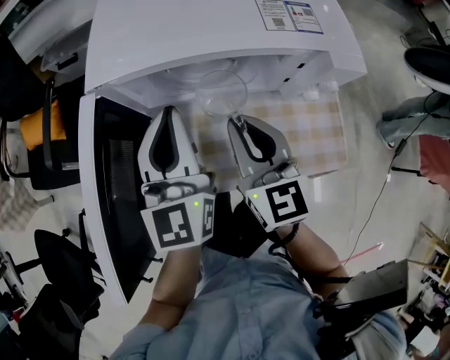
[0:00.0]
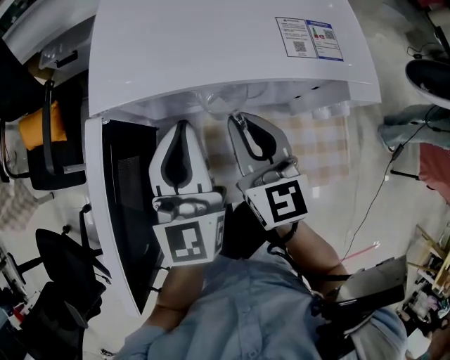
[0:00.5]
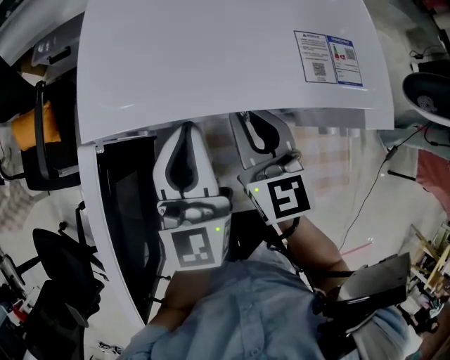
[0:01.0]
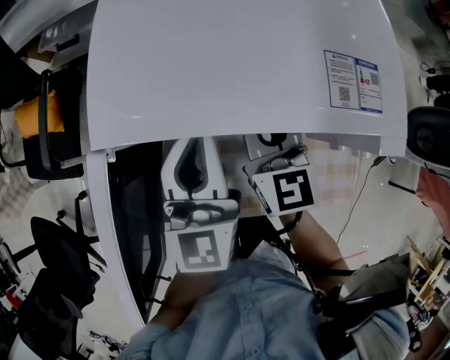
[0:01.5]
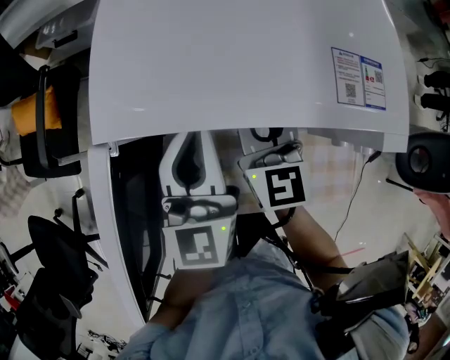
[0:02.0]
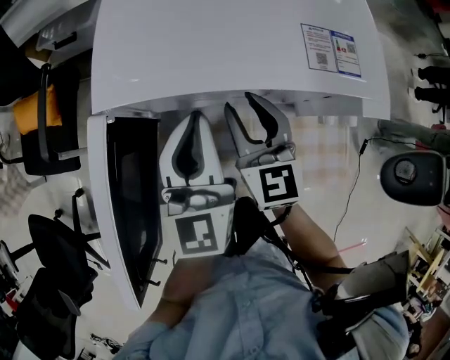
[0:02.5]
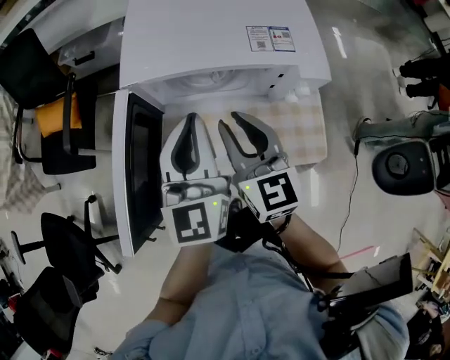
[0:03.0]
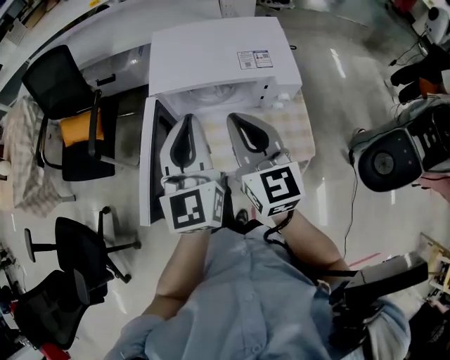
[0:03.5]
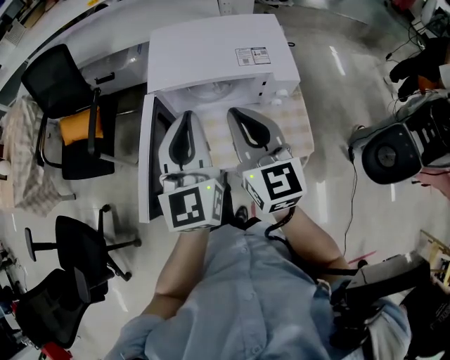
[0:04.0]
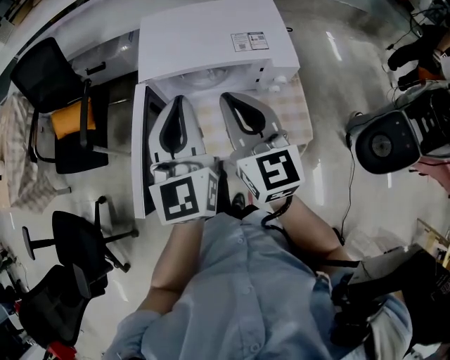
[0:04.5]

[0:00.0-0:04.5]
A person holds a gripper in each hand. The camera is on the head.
0:00.0 to 0:02.0: The left gripper ends up about 5 cm from where it was. Meanwhile the right gripper is displaced forward by roughly 15 cm.
0:02.0 to 0:04.5: Both grippers move upward and backward, approximately 30 cm.

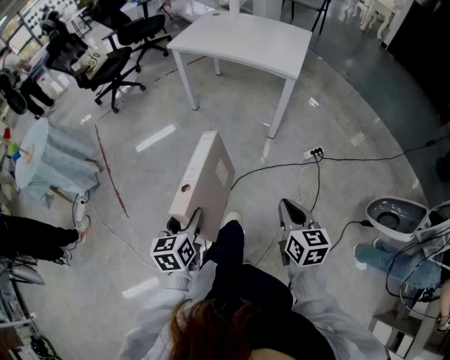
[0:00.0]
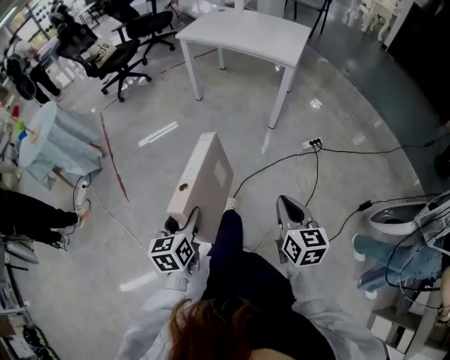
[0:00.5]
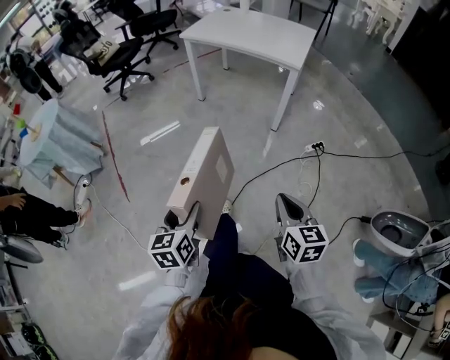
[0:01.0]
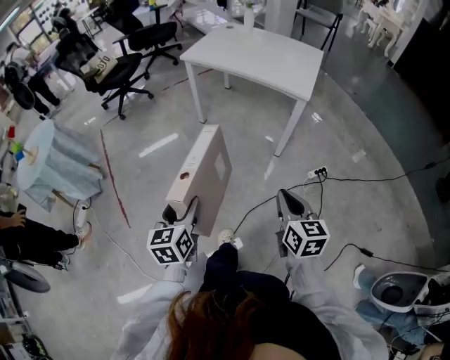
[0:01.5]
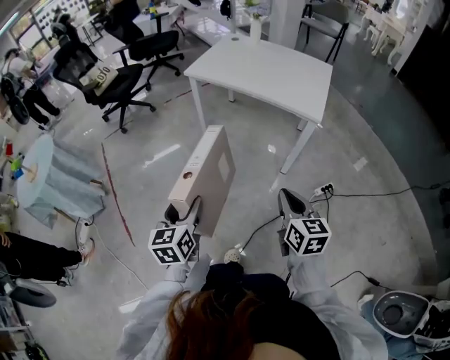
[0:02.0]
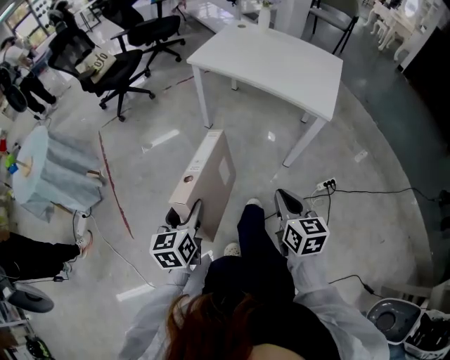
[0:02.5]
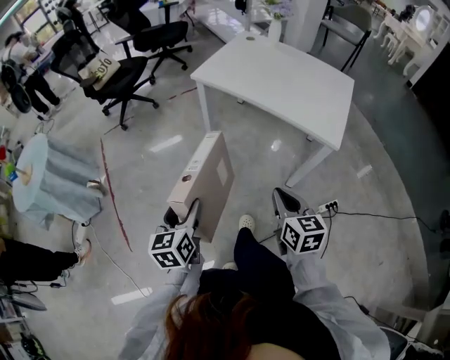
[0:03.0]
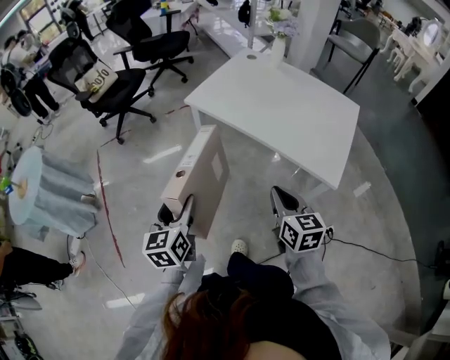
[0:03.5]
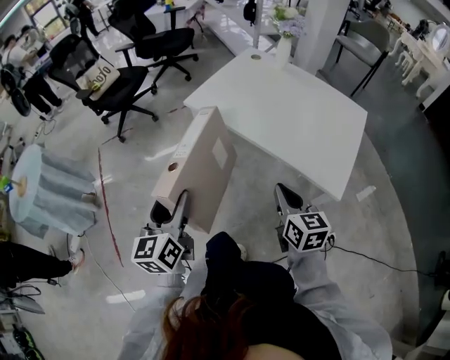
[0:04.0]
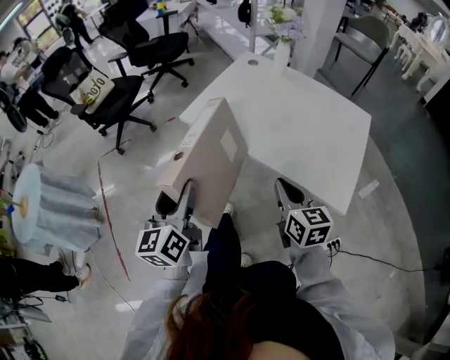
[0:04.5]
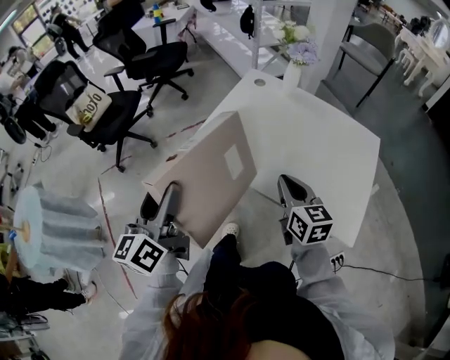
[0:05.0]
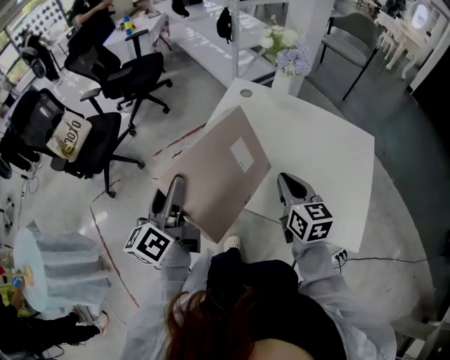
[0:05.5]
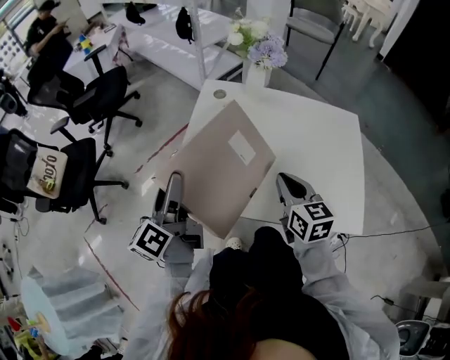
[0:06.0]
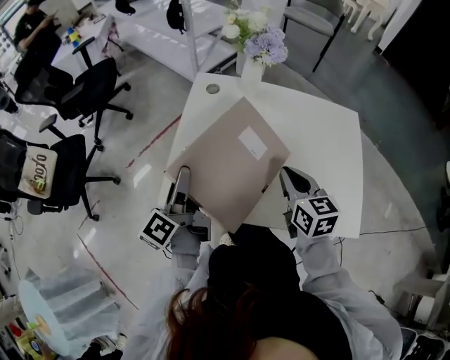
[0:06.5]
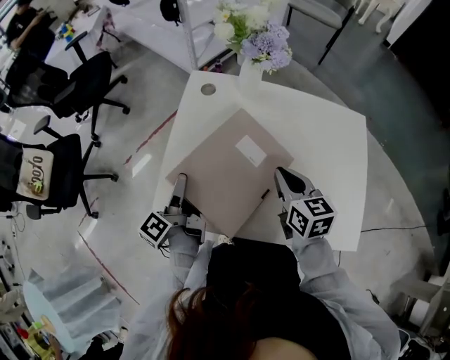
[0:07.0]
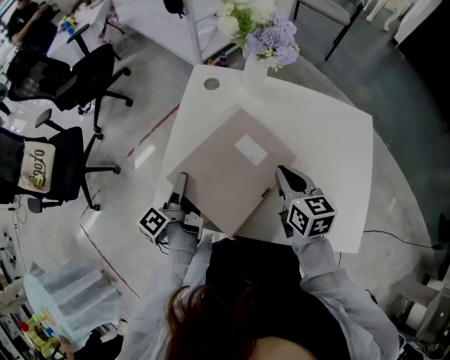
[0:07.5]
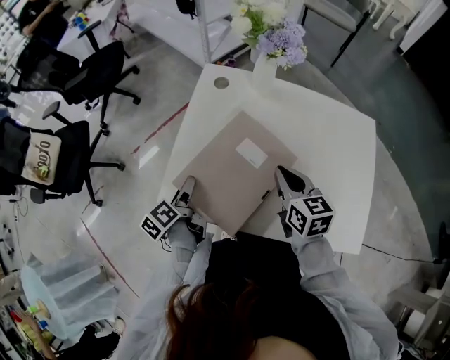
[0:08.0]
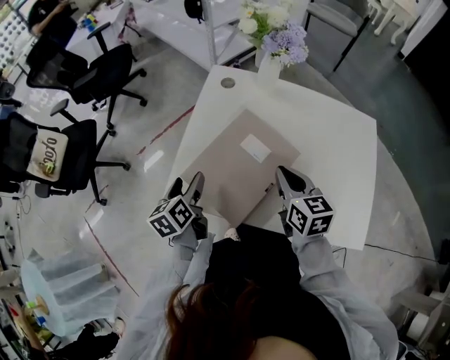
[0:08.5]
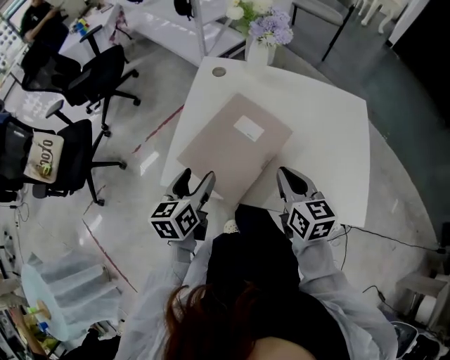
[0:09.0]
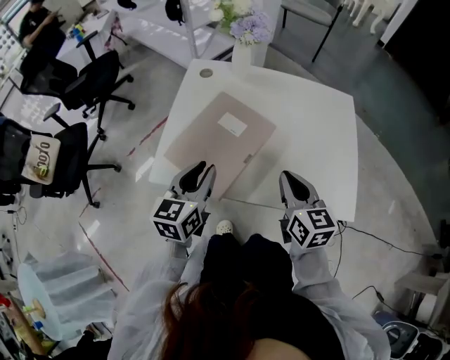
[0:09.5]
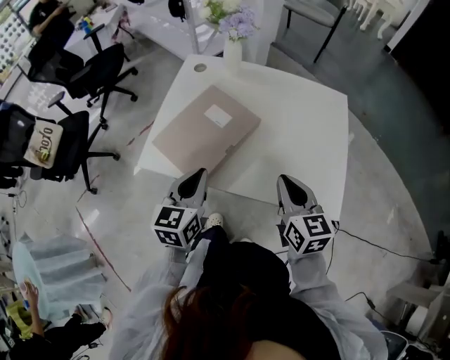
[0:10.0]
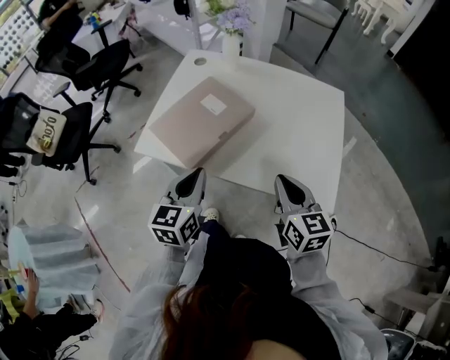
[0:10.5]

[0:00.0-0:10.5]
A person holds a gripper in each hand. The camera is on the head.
0:00.0 to 0:02.0: The grippers both shift forward by roughly 25 cm.
0:02.0 to 0:04.0: The grippers both shift forward by approximately 35 cm.
0:04.0 to 0:06.5: The grippers both shift forward by roughly 40 cm. The left gripper rolls counterclockwise, seen from behind, by approximately 40 degrees. The right gripper turns by about 20 degrees.
0:06.5 to 0:08.5: The left gripper moves downward, some 10 cm, and tips its fingers downward by roughly 30 degrees.
0:08.5 to 0:10.5: The left gripper goes some 30 cm to the right, backward and upward, changes its angle by some 30 degrees, and closes. Meanwhile the right gripper goes about 25 cm backward and to the right.

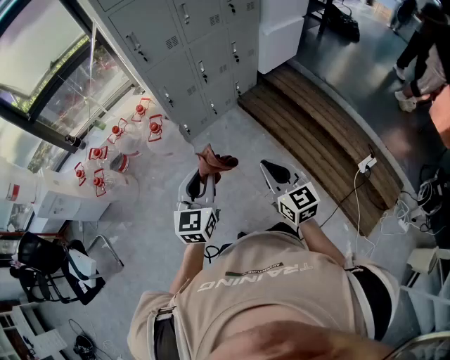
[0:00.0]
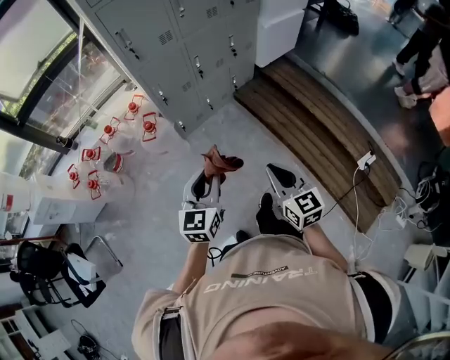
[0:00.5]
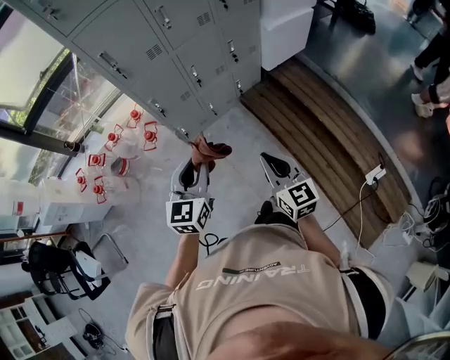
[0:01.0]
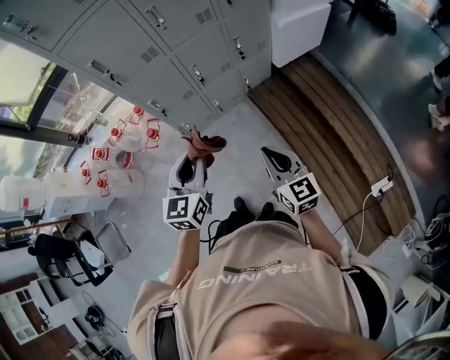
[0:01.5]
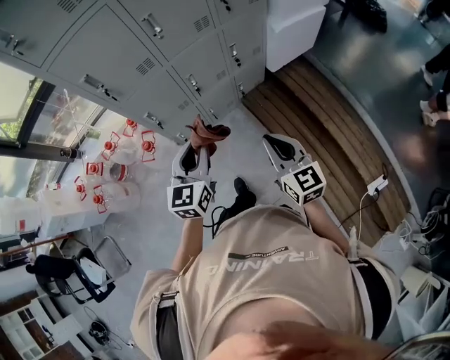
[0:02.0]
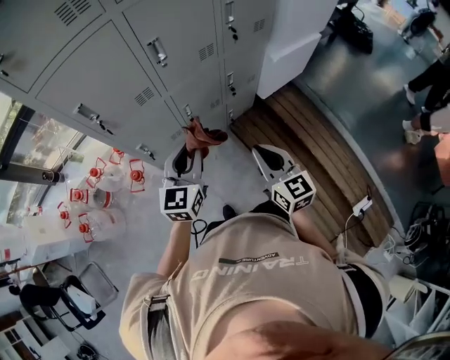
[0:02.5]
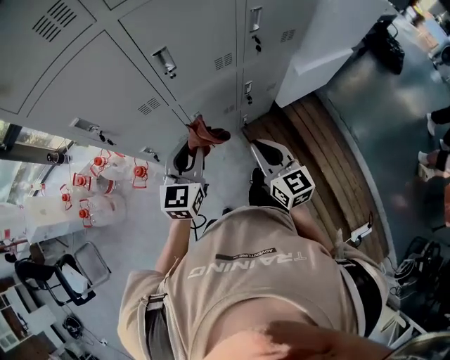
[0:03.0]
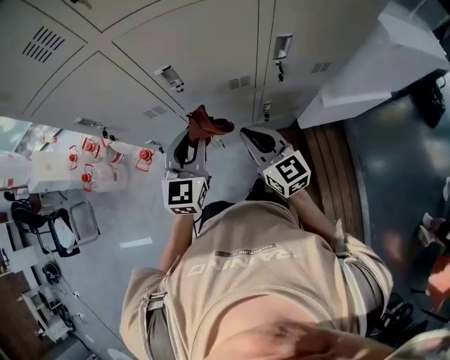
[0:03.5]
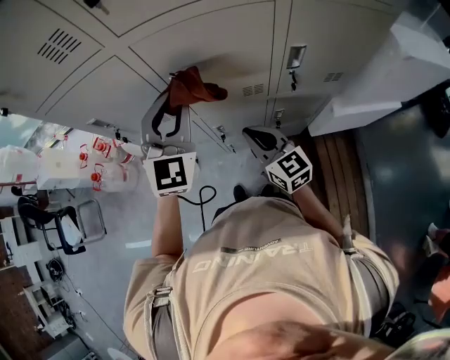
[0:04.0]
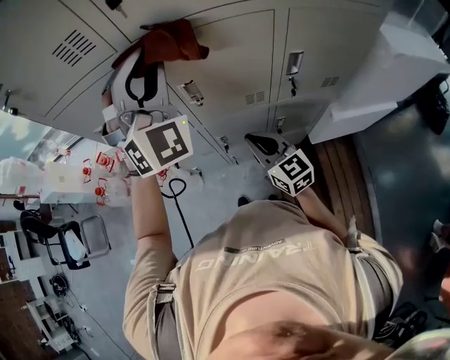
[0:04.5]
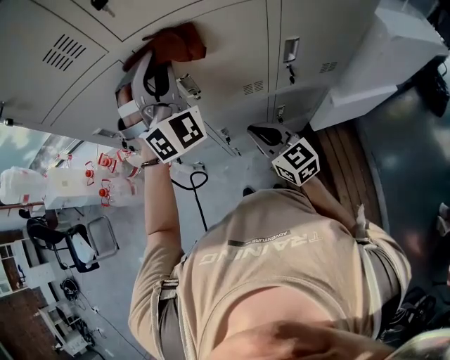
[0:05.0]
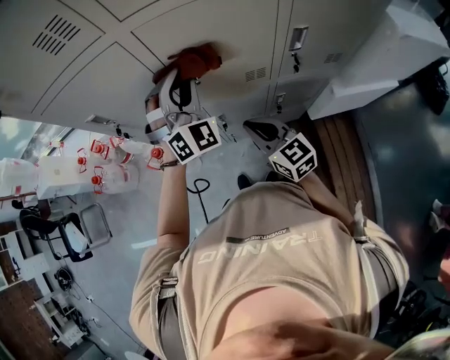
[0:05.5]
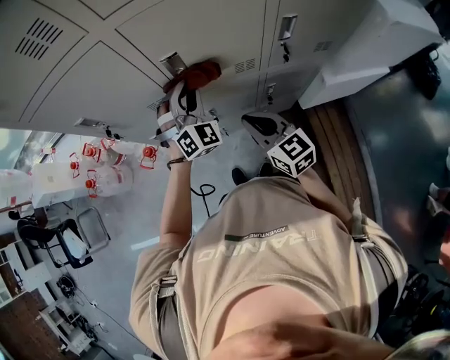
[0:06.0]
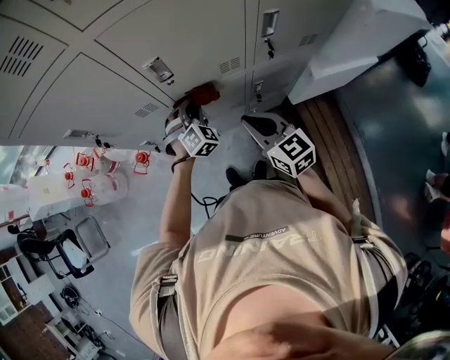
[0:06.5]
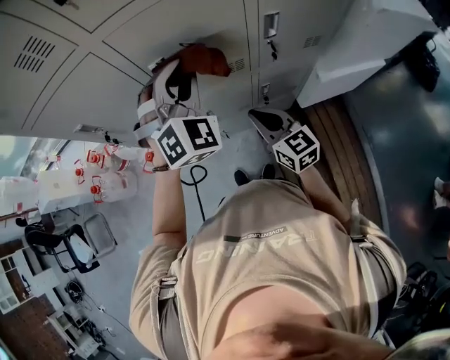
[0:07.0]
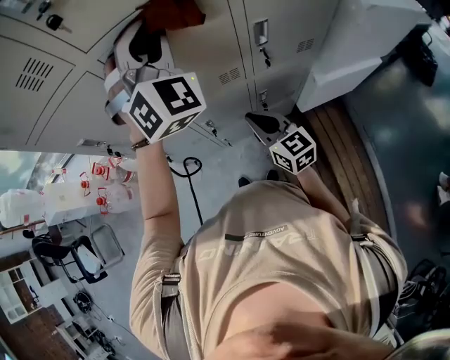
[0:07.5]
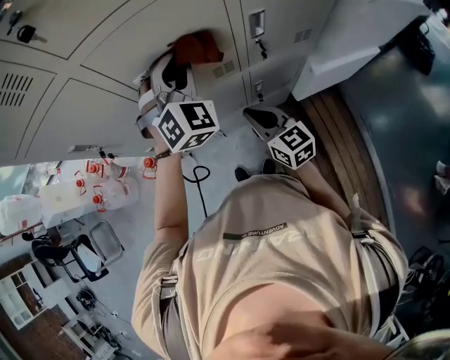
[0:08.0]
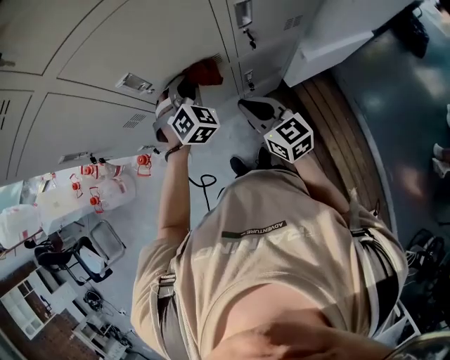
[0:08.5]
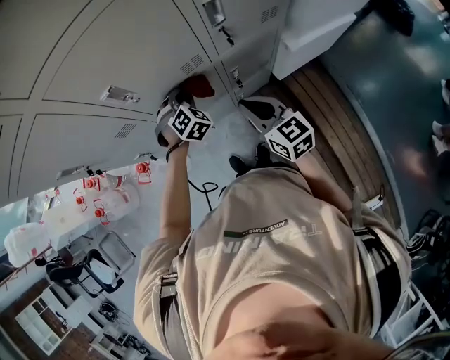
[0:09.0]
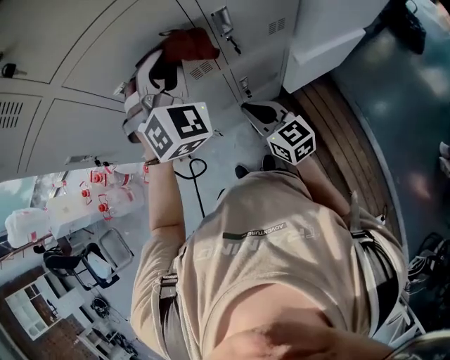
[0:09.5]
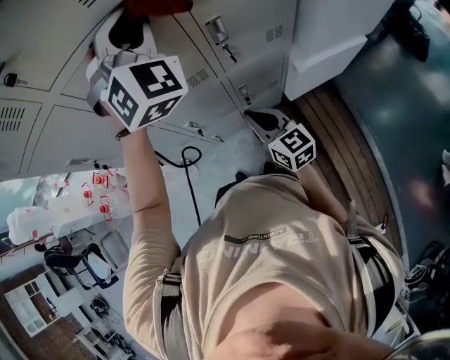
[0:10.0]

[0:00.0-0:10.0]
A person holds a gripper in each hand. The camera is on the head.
0:00.0 to 0:02.0: The right gripper travels forward and to the right by about 35 cm. Meanwhile the left gripper is displaced forward by approximately 35 cm.
0:02.0 to 0:04.0: The left gripper ends up approximately 40 cm from where it was, and rotates approximately 40 degrees. The right gripper ends up about 40 cm from where it was, and changes its angle by roughly 30 degrees.
0:04.0 to 0:06.0: The left gripper goes approximately 15 cm downward, and changes its angle by approximately 30 degrees.
0:06.0 to 0:08.0: The right gripper is displaced to the right by some 5 cm, while the left gripper goes up and down, about 40 cm each way, reversing 2 times.
0:08.0 to 0:10.0: The left gripper is displaced upward and to the right by approximately 20 cm. The right gripper goes approximately 5 cm to the right.

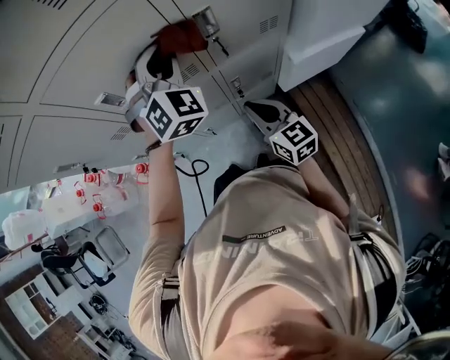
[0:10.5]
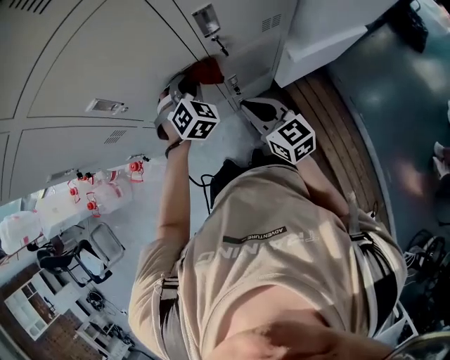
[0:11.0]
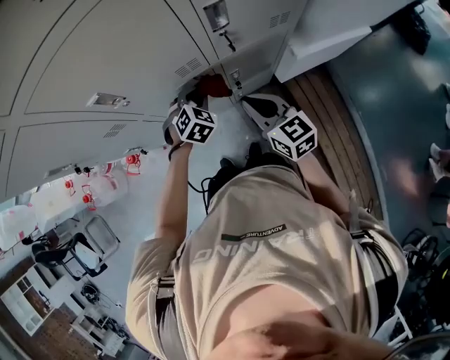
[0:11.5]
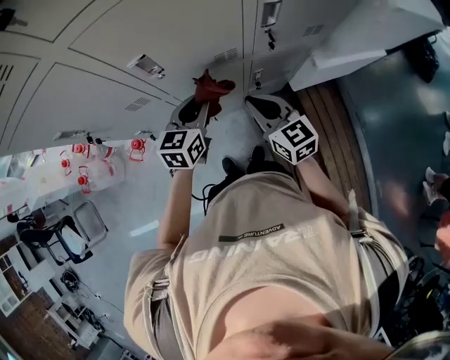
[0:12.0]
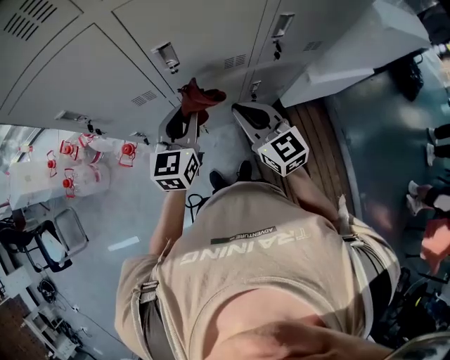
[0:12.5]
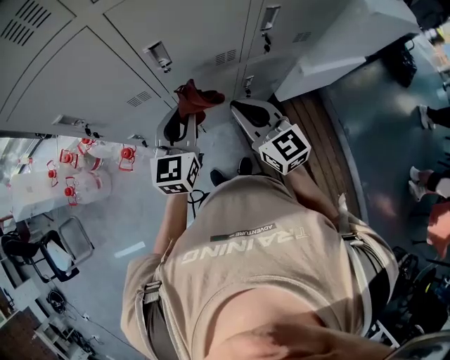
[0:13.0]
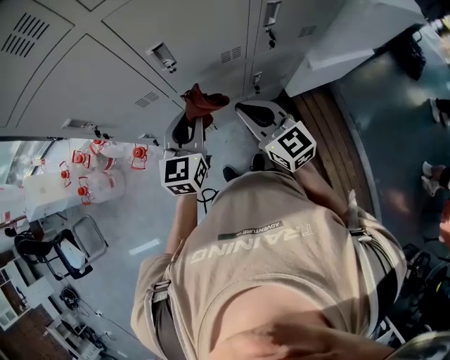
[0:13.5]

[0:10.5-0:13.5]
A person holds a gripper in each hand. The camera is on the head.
0:10.5 to 0:12.0: The right gripper goes approximately 10 cm to the left. Meanwhile the left gripper shifts some 20 cm downward, to the left and backward, and twists approximately 60 degrees counterclockwise, seen from behind.
0:12.0 to 0:13.5: The left gripper heads to the left, backward and upward, covering roughly 10 cm, while the right gripper shifts approximately 10 cm to the left and upward.
